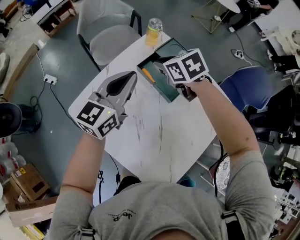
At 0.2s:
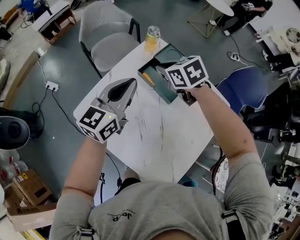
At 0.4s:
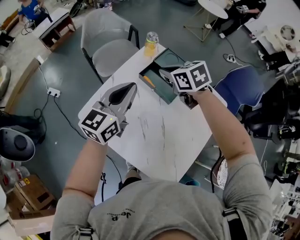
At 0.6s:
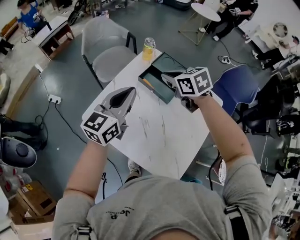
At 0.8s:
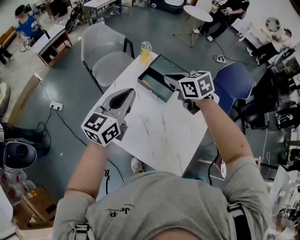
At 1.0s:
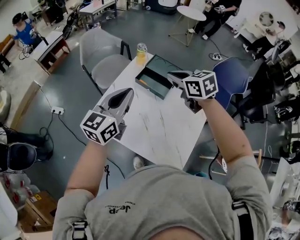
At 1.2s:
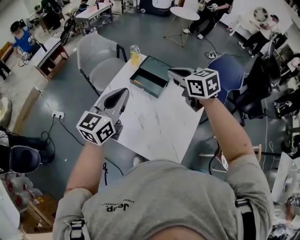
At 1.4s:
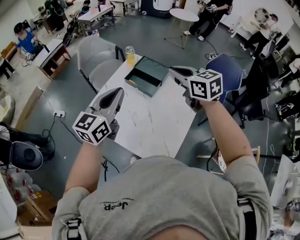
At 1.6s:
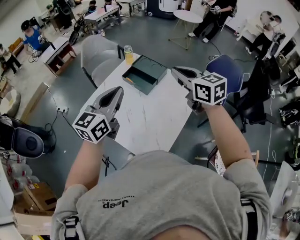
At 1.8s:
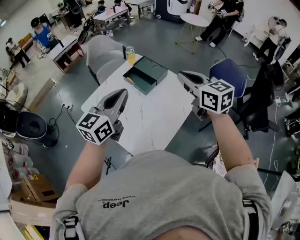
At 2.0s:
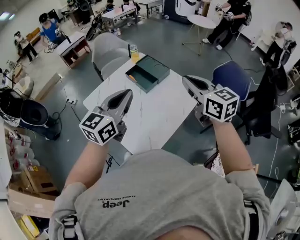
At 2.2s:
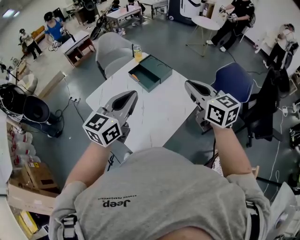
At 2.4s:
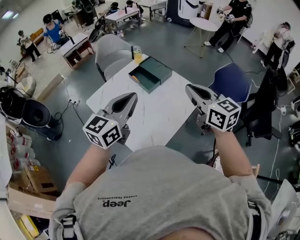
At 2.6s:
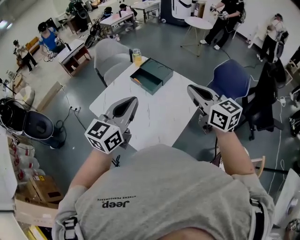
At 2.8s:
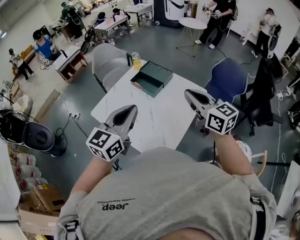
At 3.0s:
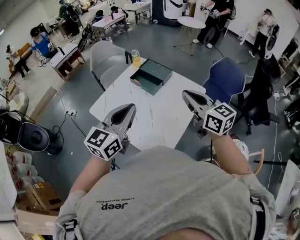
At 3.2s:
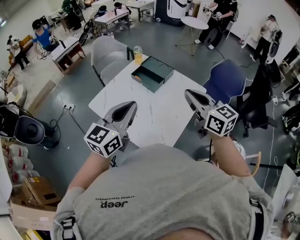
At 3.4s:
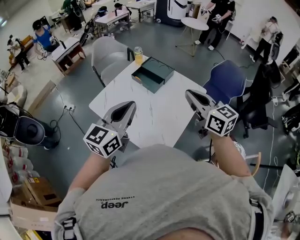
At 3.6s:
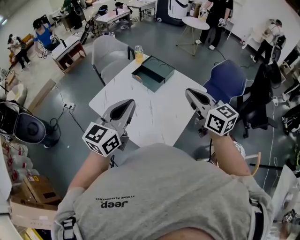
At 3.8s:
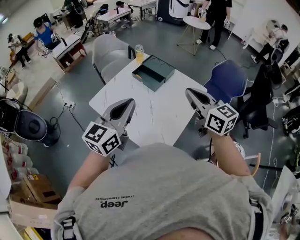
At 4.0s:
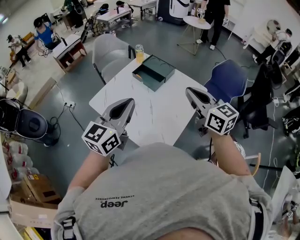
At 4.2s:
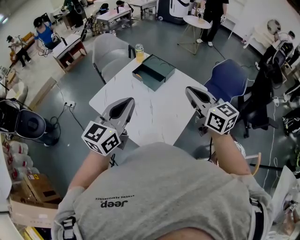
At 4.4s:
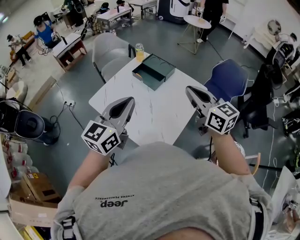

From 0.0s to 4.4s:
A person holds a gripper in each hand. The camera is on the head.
From 0.0s to 1.4s: The right gripper shifts roughly 35 cm upward, backward and to the right, and changes its angle by some 30 degrees. The left gripper moves backward and upward, roughly 25 cm.
From 1.4s to 3.0s: The right gripper goes approximately 15 cm backward, while the left gripper goes some 15 cm backward and to the right.
From 3.0s to 4.4s: The grippers move only a little.

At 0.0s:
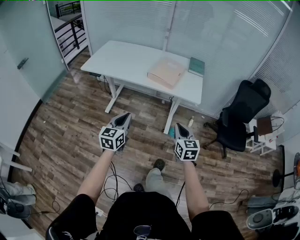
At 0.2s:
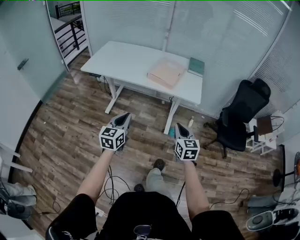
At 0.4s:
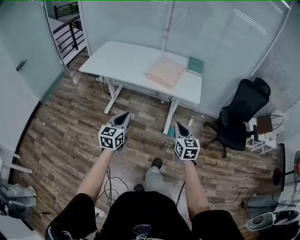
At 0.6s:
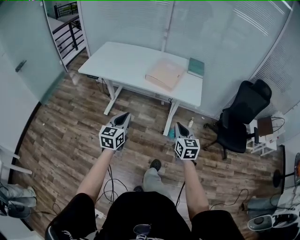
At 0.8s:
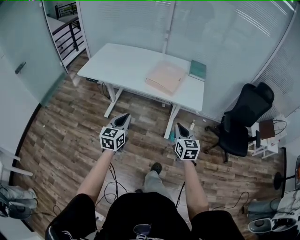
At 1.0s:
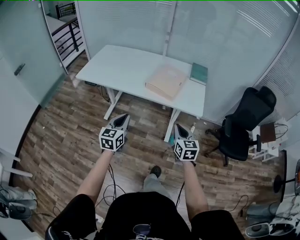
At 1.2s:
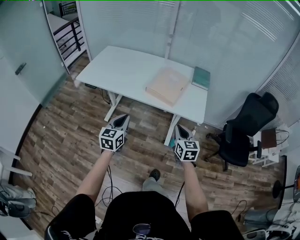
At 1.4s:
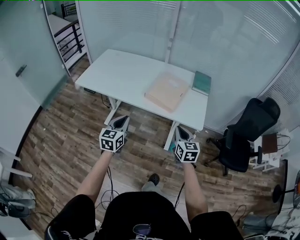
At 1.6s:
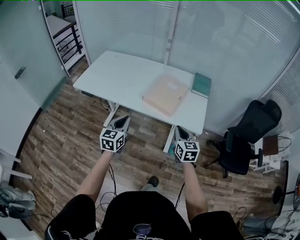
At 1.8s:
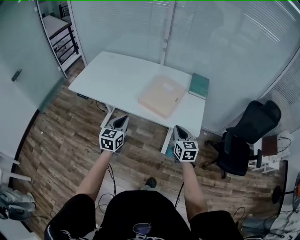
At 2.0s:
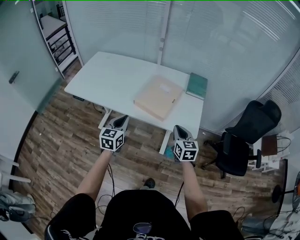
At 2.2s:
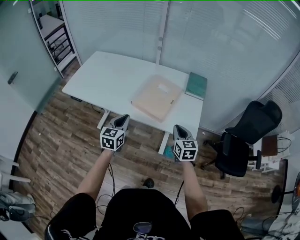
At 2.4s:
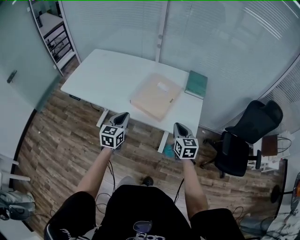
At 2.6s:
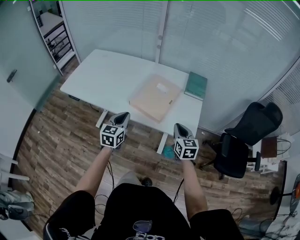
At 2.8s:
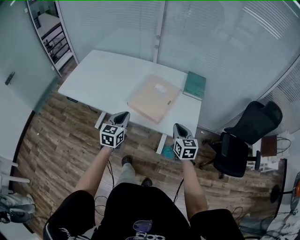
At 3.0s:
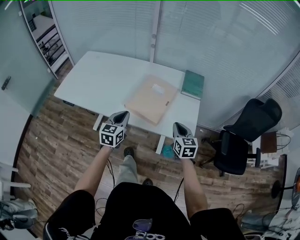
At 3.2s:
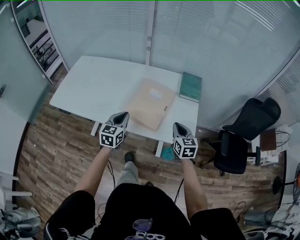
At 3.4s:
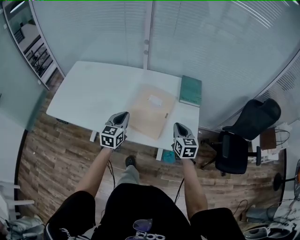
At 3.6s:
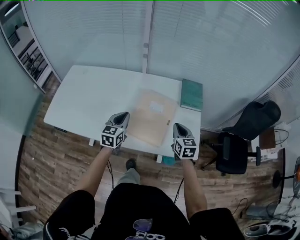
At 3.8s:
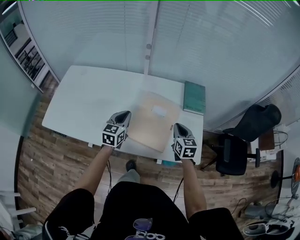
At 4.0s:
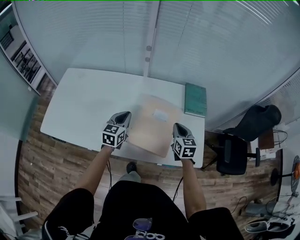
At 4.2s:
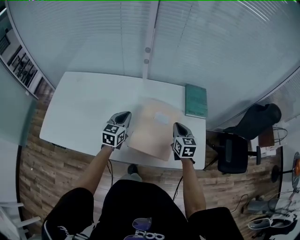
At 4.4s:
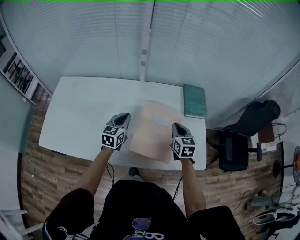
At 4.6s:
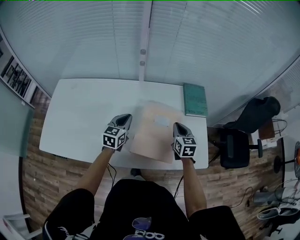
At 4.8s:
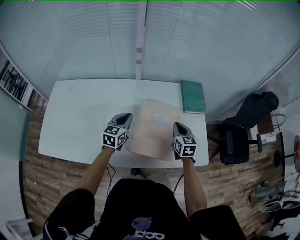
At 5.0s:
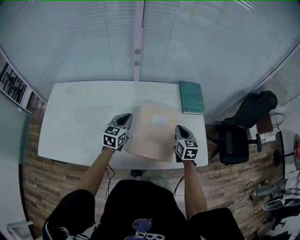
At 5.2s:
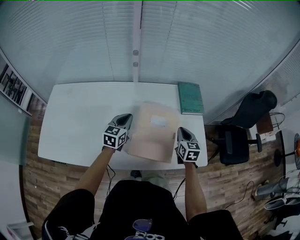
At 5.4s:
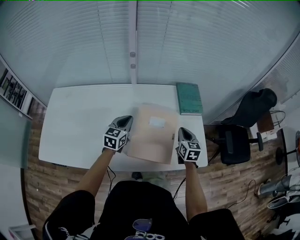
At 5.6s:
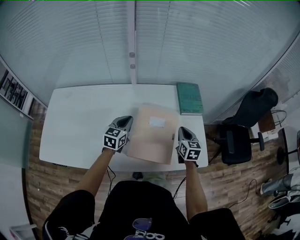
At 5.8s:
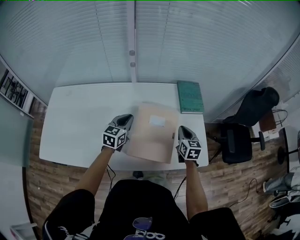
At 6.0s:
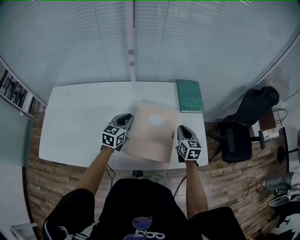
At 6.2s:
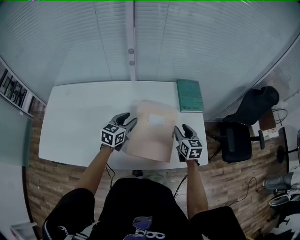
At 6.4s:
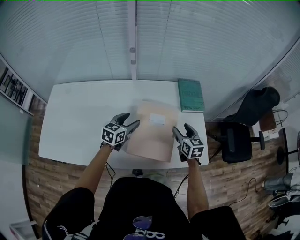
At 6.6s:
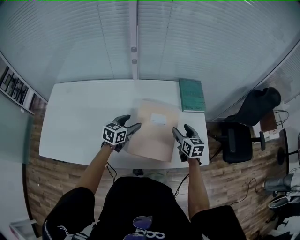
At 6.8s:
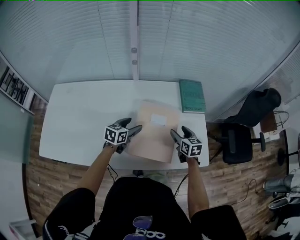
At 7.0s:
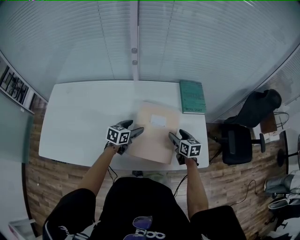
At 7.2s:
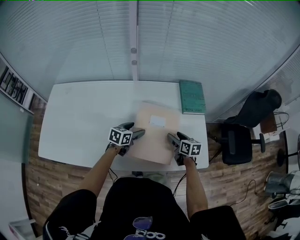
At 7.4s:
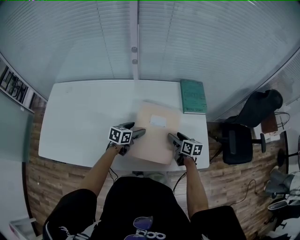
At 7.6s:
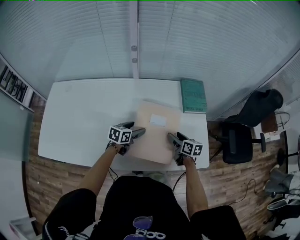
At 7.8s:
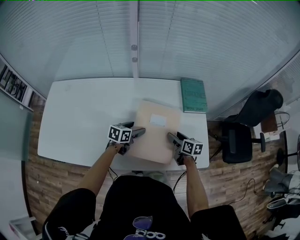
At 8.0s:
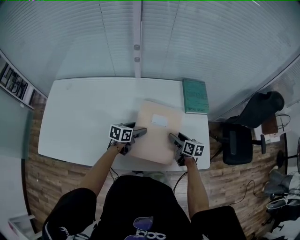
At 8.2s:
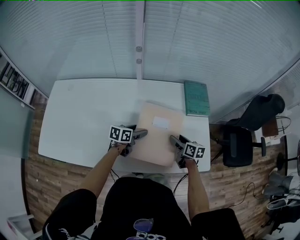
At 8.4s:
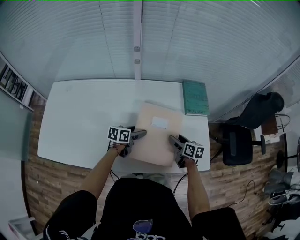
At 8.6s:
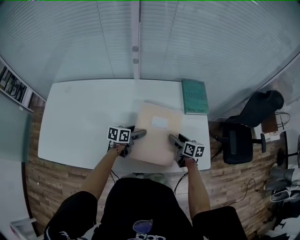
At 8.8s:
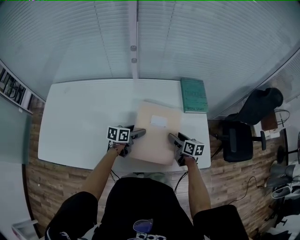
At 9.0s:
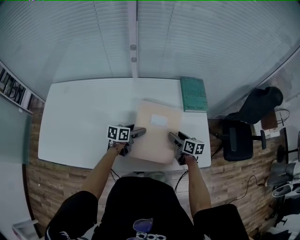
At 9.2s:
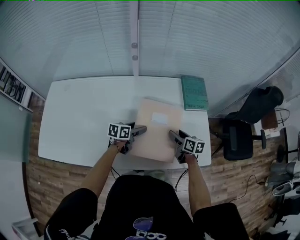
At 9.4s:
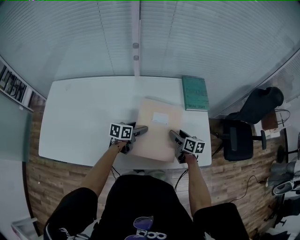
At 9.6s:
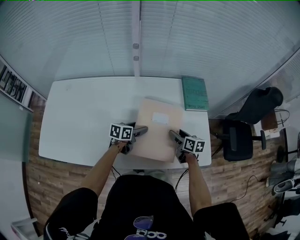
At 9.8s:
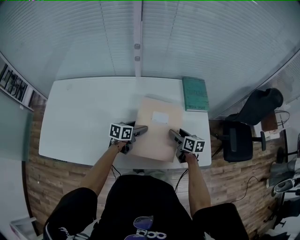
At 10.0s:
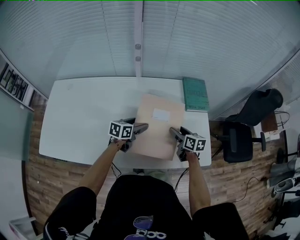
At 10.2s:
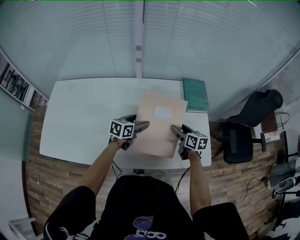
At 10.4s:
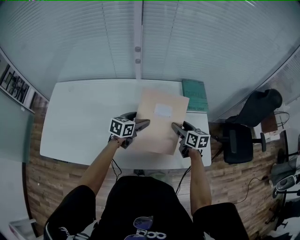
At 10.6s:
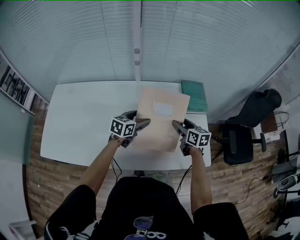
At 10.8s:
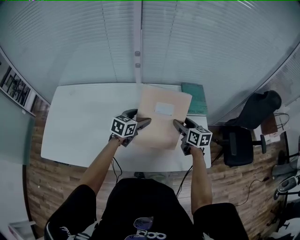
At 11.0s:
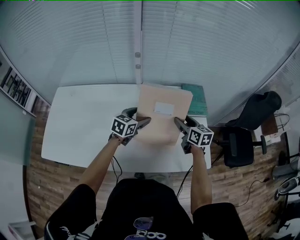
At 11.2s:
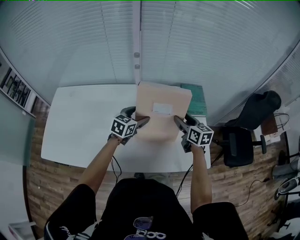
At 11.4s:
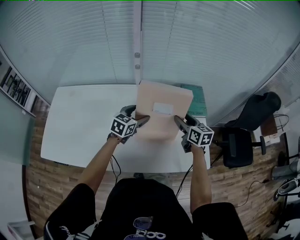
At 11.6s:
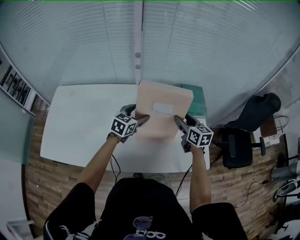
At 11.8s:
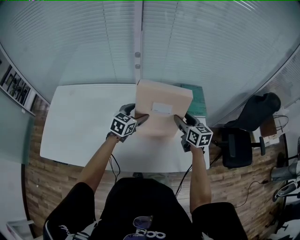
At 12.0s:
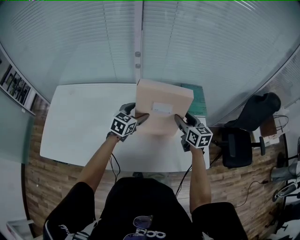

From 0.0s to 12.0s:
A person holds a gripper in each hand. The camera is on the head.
From 0.0s to 1.6s: The two grippers go some 25 cm forward.
From 1.6s to 3.0s: The grippers both shift forward and to the right by some 15 cm.
From 3.0s to 4.4s: The left gripper goes roughly 25 cm forward; the right gripper travels forward and to the left by approximately 25 cm.
From 4.4s to 6.0s: The left gripper shifts by approximately 5 cm. The right gripper moves to the right, about 5 cm.
From 6.0s to 7.6s: The two grippers go some 10 cm downward. The right gripper changes its angle by about 30 degrees, and opens its fingers; the left gripper changes its angle by roughly 30 degrees, and opens up.
From 7.6s to 9.0s: There are only small adjustments of the grippers.
From 9.0s to 10.4s: Both grippers move upward, approximately 10 cm.
From 10.4s to 12.0s: The grippers both shift upward by some 5 cm. The left gripper turns by about 20 degrees.

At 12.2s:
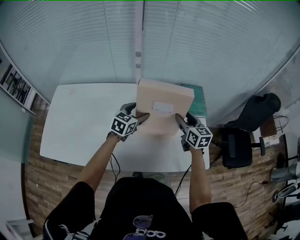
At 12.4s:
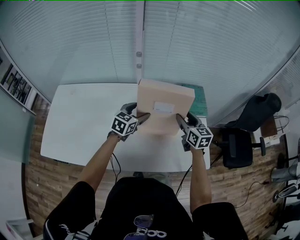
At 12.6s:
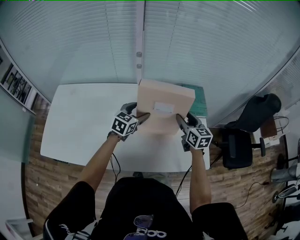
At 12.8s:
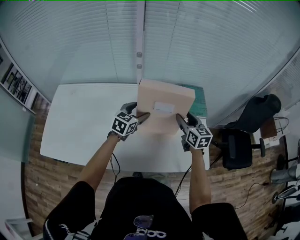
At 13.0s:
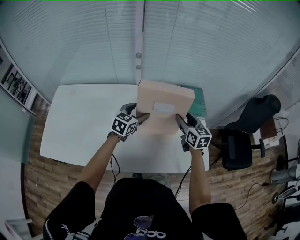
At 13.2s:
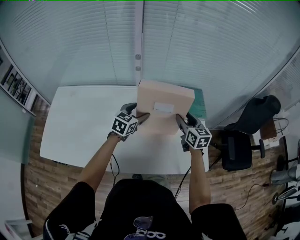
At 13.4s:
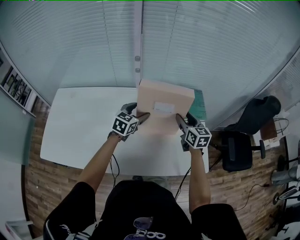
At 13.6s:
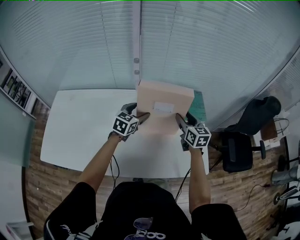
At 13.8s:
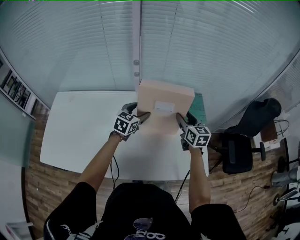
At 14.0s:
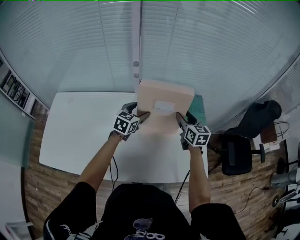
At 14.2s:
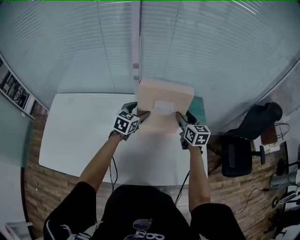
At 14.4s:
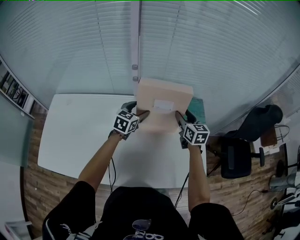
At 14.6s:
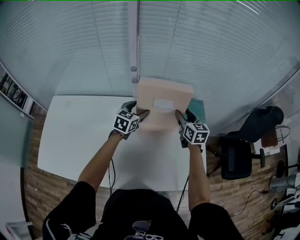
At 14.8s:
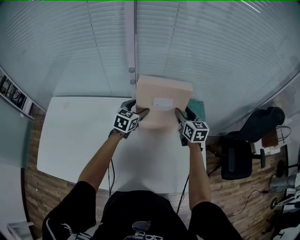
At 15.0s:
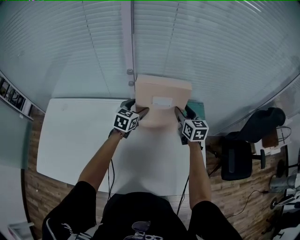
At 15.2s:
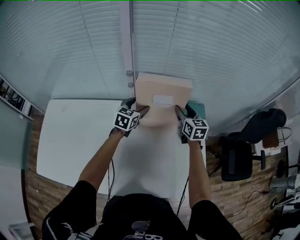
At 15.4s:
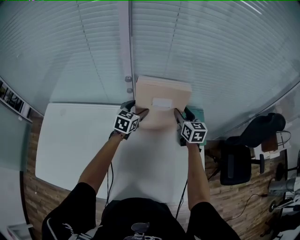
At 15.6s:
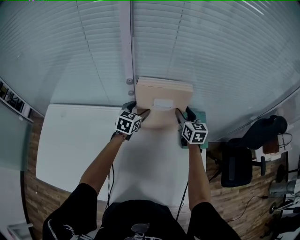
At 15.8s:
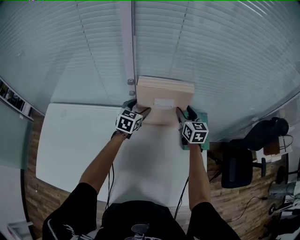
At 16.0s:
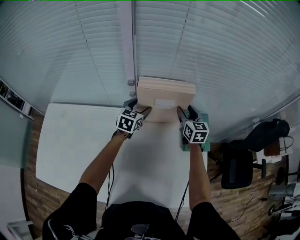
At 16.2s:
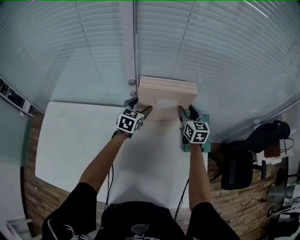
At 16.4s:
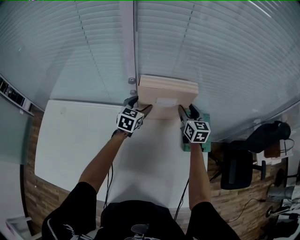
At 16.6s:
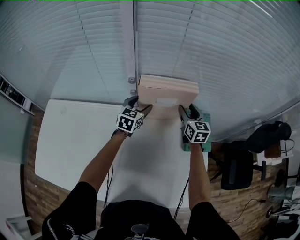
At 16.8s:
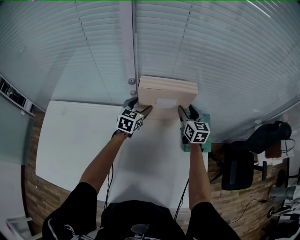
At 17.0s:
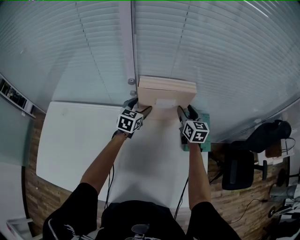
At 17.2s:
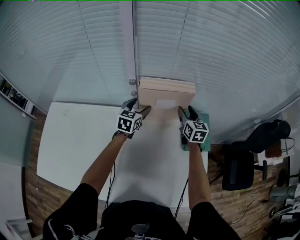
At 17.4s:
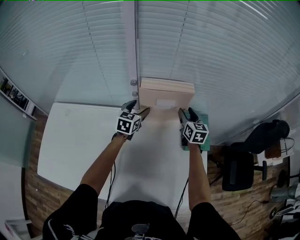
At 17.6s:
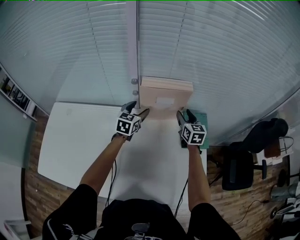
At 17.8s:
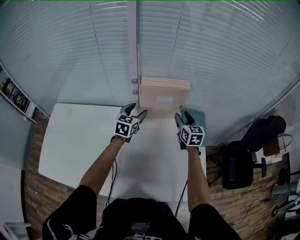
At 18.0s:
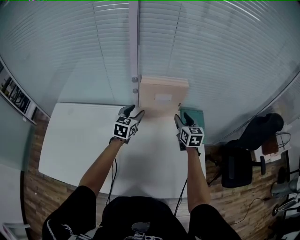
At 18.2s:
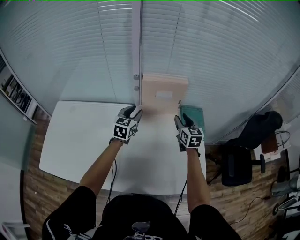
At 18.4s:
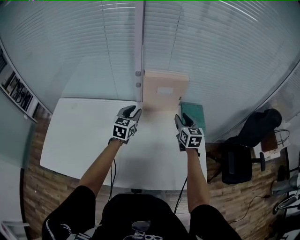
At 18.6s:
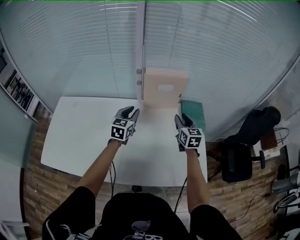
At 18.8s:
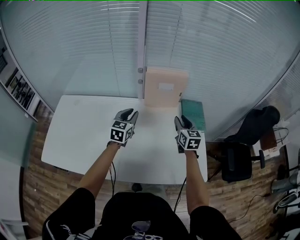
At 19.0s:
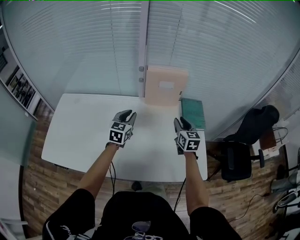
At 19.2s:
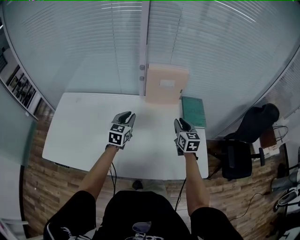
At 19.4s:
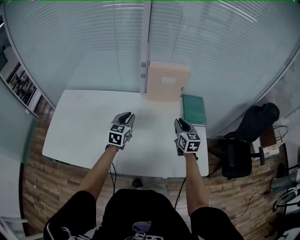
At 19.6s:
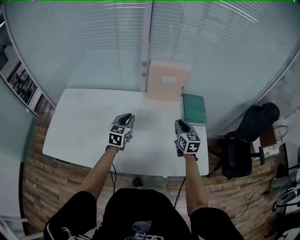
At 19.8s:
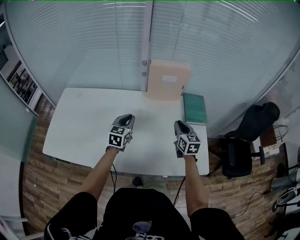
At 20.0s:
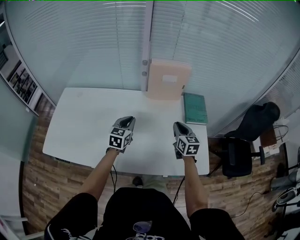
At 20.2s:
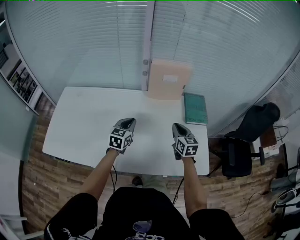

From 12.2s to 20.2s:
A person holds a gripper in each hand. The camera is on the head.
From 12.2s to 13.8s: The grippers both shift forward by roughly 5 cm.
From 13.8s to 15.4s: Both grippers move forward, some 15 cm.
From 15.4s to 17.0s: The grippers move only a little.
From 17.0s to 18.6s: The two grippers go approximately 20 cm backward. The left gripper closes.
From 18.6s to 20.2s: The right gripper moves backward, about 10 cm, and closes up. The left gripper travels backward and downward by approximately 15 cm.
